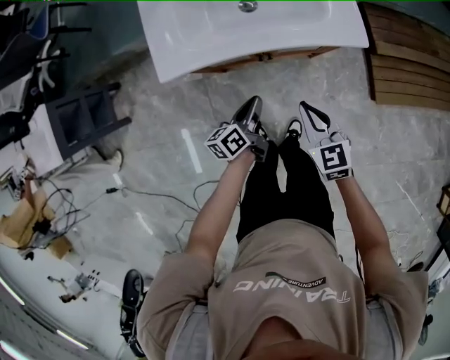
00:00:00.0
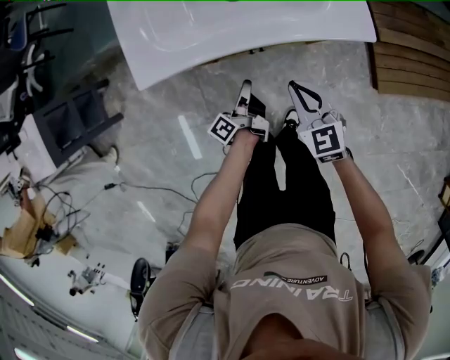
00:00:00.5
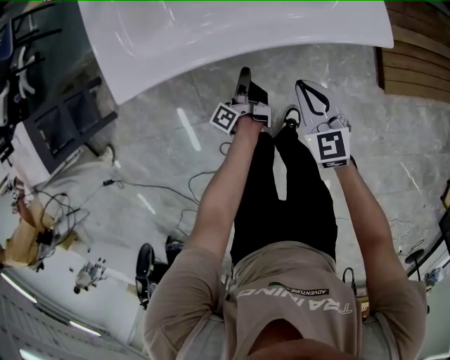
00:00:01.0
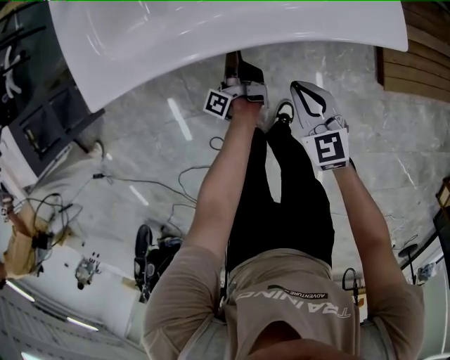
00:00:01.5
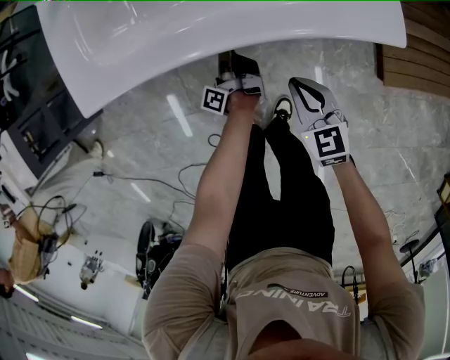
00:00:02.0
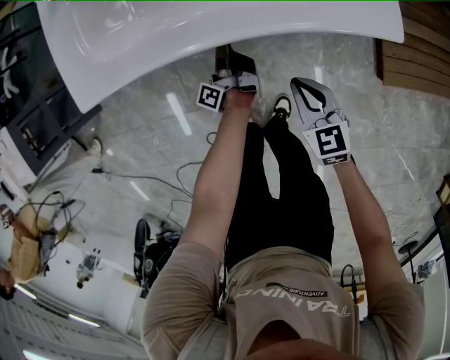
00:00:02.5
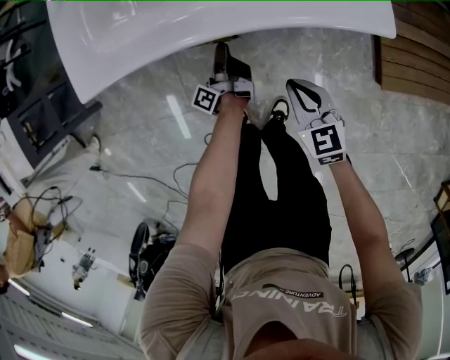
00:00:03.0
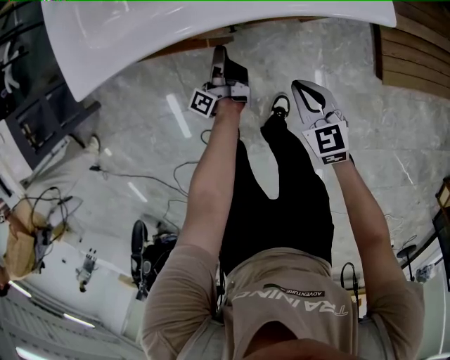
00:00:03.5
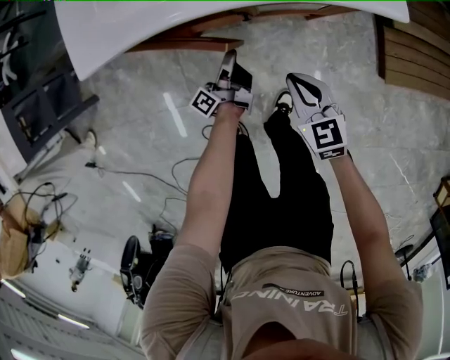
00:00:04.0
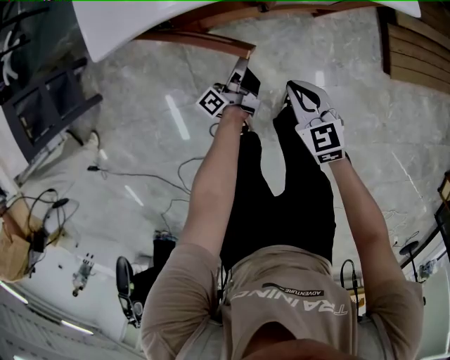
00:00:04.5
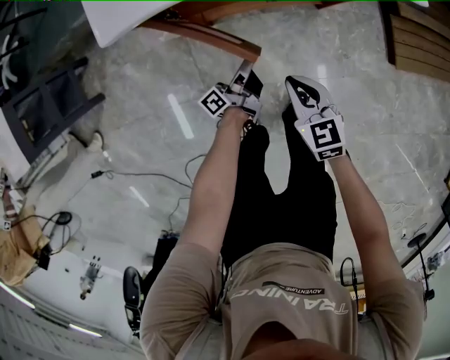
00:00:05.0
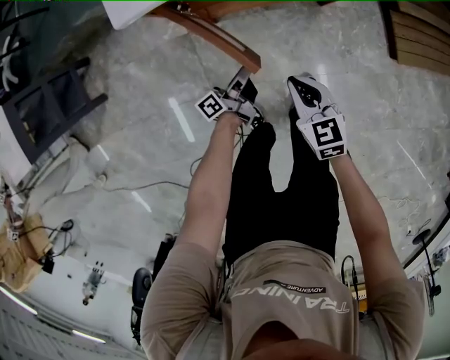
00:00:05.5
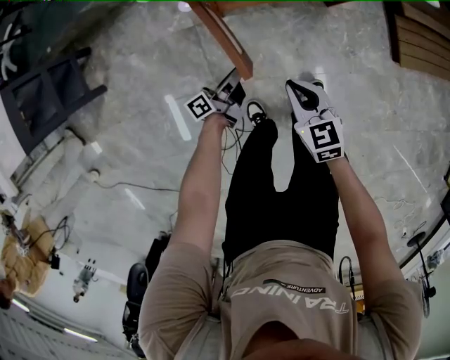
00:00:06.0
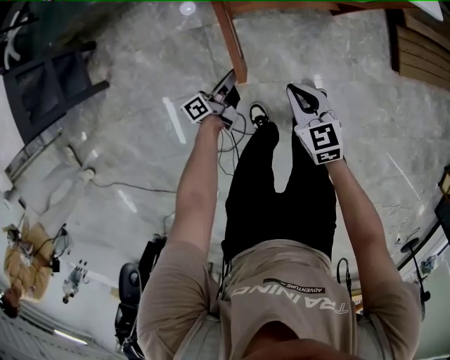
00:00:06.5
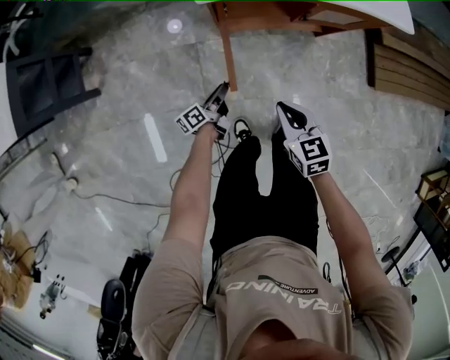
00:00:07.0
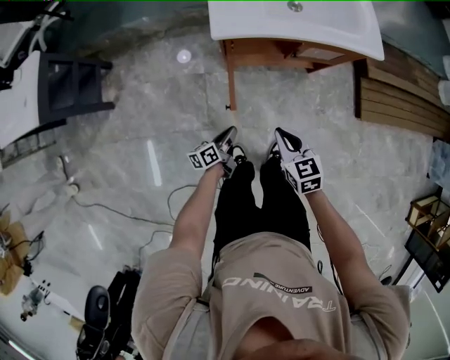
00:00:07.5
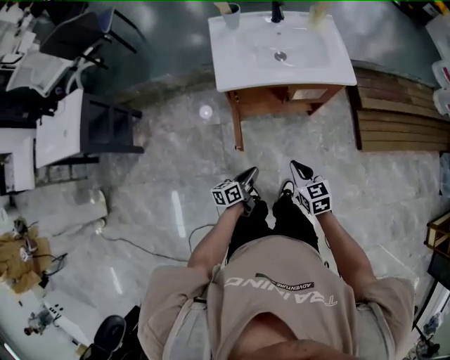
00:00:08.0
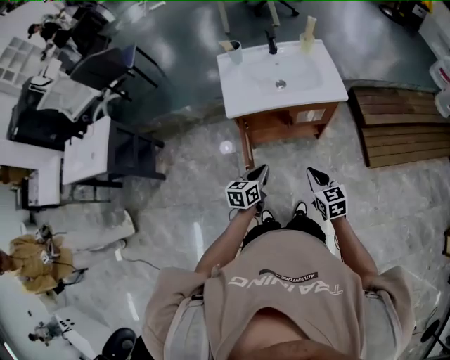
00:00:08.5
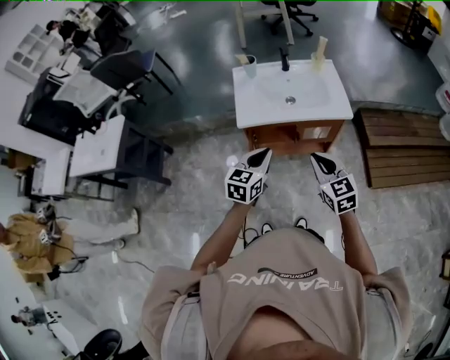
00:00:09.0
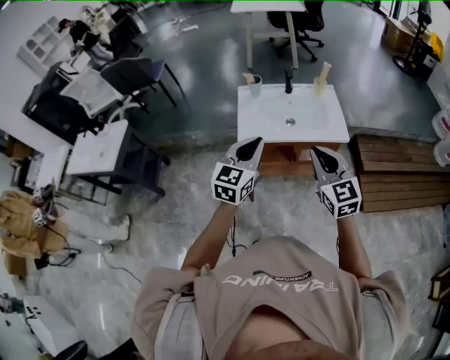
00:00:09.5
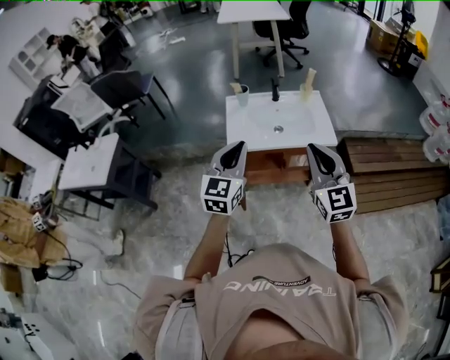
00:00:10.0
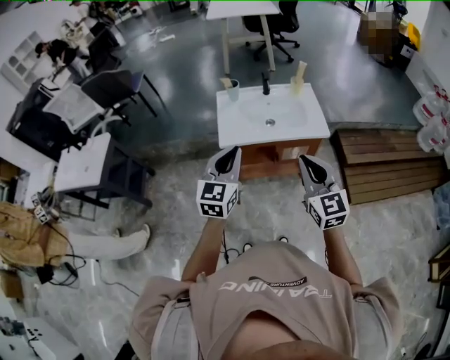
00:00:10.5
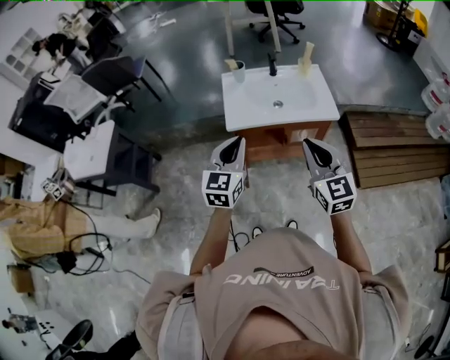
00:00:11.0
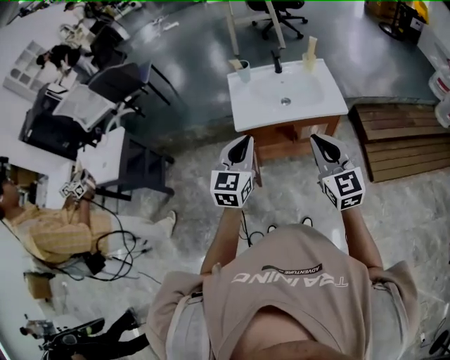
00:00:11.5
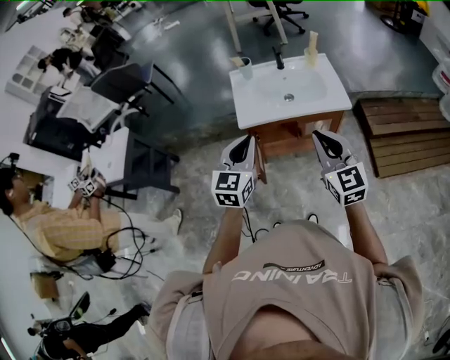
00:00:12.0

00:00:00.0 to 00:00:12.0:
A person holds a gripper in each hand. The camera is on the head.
00:00:00.0 to 00:00:02.0: The left gripper goes approximately 25 cm downward and forward, changes its angle by approximately 60 degrees, and opens its fingers; the right gripper travels downward by roughly 15 cm.
00:00:02.0 to 00:00:04.0: The right gripper ends up some 5 cm from where it was. The left gripper heads backward, covering some 5 cm, and swivels approximately 20 degrees.
00:00:04.0 to 00:00:06.0: The two grippers go approximately 20 cm to the left and backward. The left gripper changes its angle by roughly 30 degrees.
00:00:06.0 to 00:00:08.0: The left gripper heads upward and backward, covering some 20 cm, and turns by some 30 degrees; the right gripper moves upward, roughly 20 cm.
00:00:08.0 to 00:00:10.0: Both grippers move upward, approximately 40 cm. The left gripper rotates around the line of its fingers by about 60 degrees, clockwise from behind. Meanwhile the right gripper angles its fingers upward, by roughly 40 degrees.
00:00:10.0 to 00:00:12.0: Both grippers travel together downward, some 5 cm.

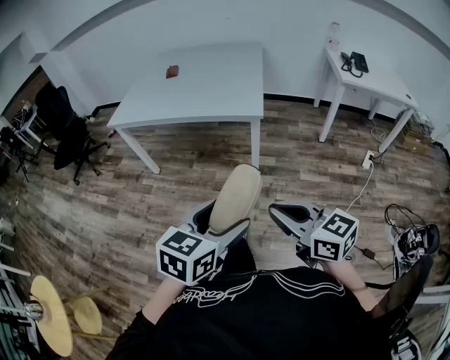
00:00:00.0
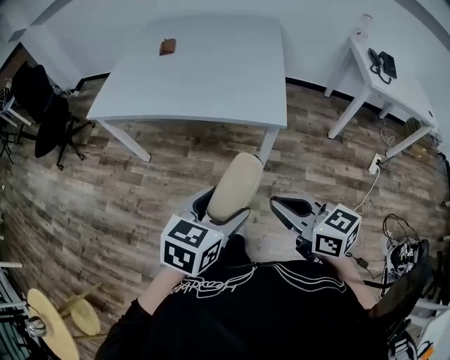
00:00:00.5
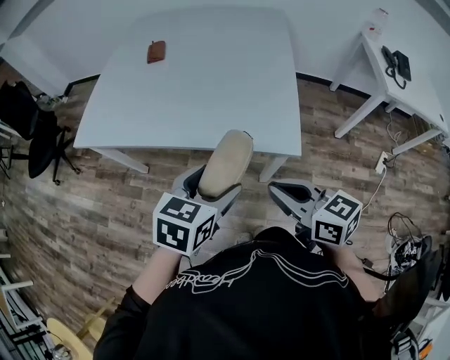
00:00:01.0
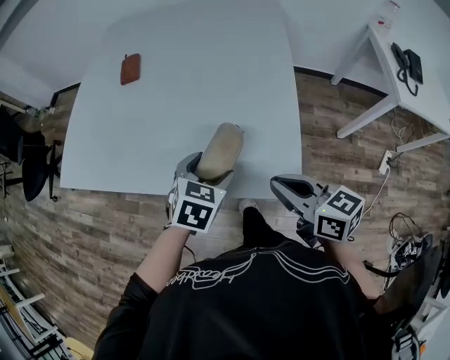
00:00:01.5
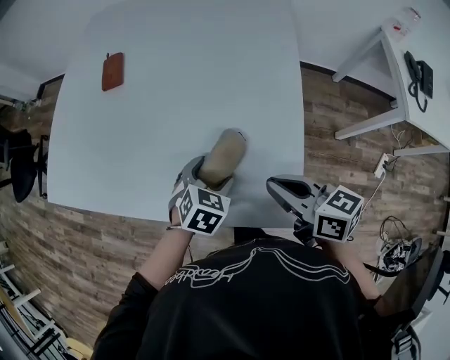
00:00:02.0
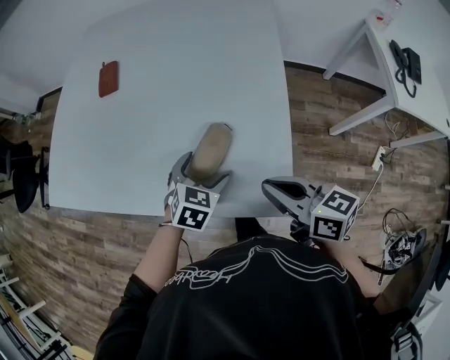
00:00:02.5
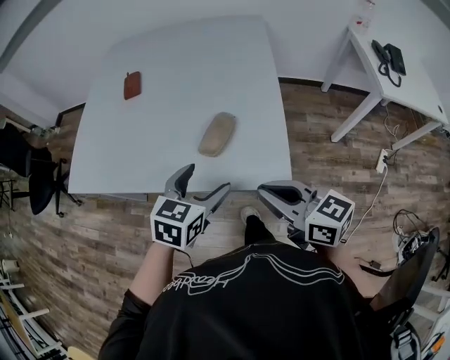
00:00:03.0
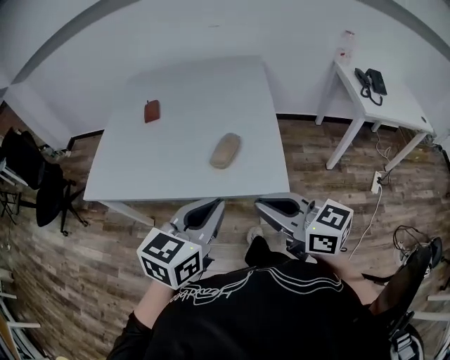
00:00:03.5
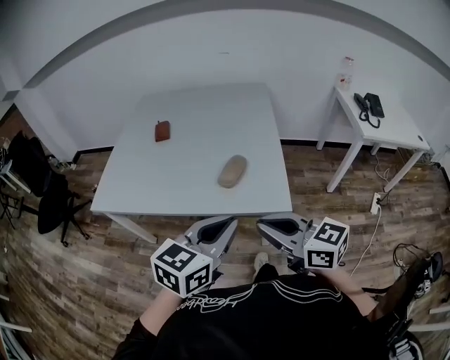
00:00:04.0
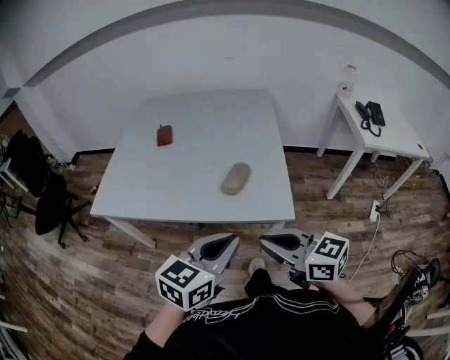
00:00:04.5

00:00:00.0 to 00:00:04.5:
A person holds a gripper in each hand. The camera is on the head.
00:00:00.0 to 00:00:02.0: The pair of grippers is taken forward, approximately 70 cm. The right gripper rotates approximately 20 degrees. The left gripper rotates some 30 degrees.
00:00:02.0 to 00:00:04.5: The left gripper heads backward and upward, covering some 40 cm, tilts its fingers roughly 40 degrees upward, and closes up. The right gripper shifts approximately 35 cm backward, upward and to the left, and rotates roughly 20 degrees.

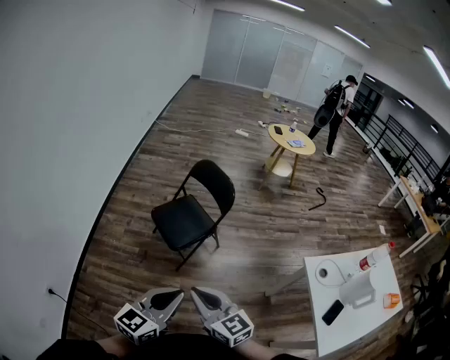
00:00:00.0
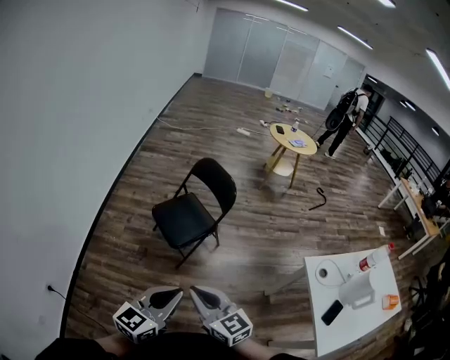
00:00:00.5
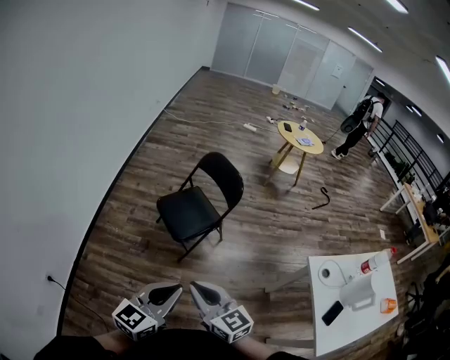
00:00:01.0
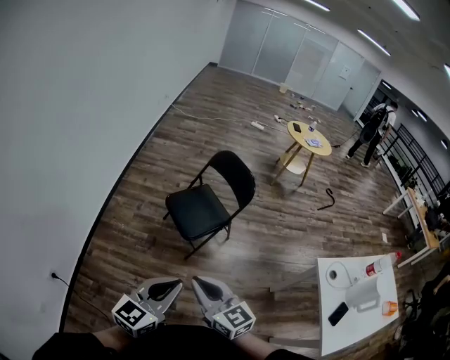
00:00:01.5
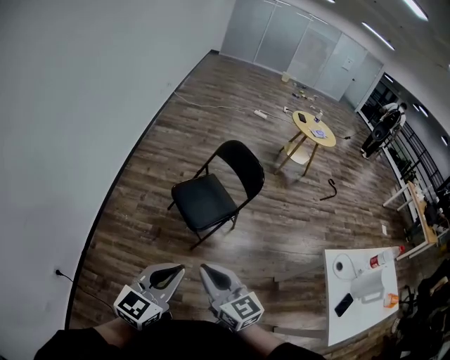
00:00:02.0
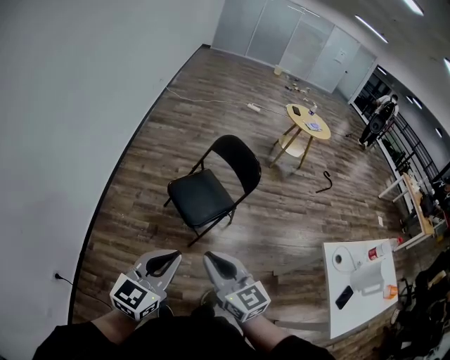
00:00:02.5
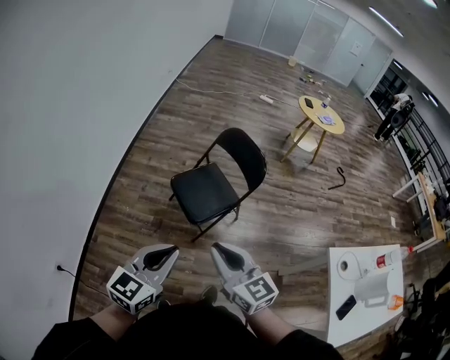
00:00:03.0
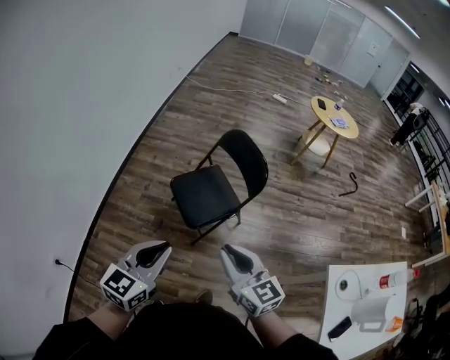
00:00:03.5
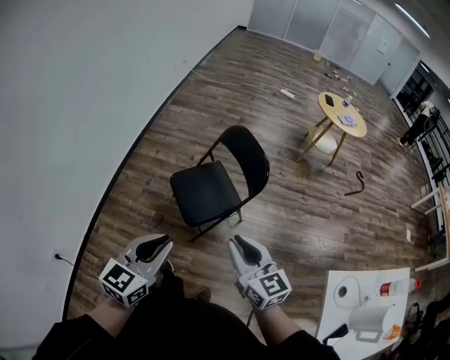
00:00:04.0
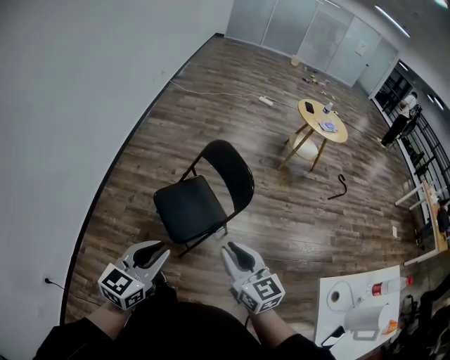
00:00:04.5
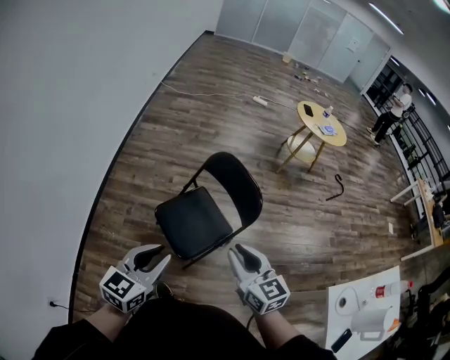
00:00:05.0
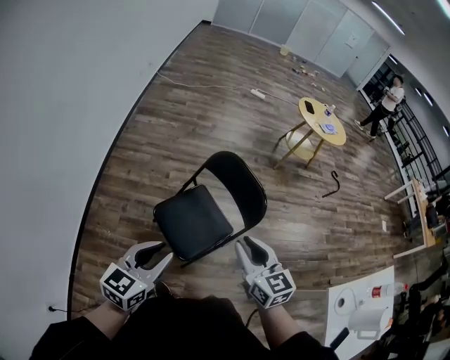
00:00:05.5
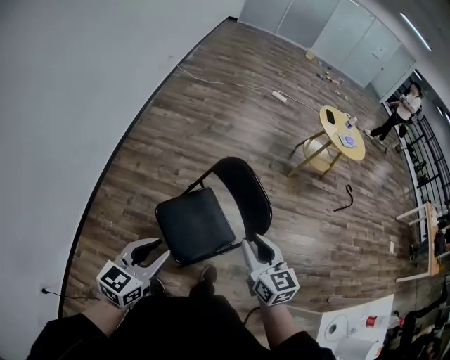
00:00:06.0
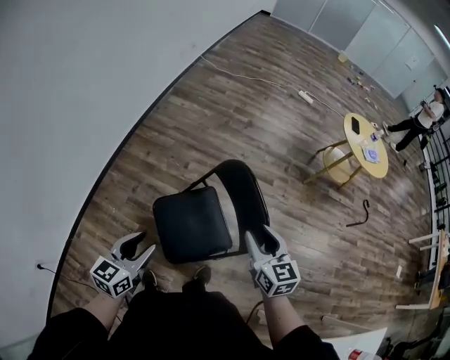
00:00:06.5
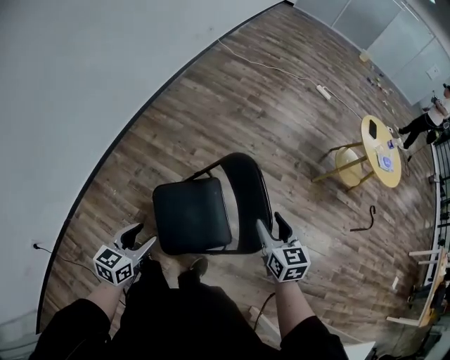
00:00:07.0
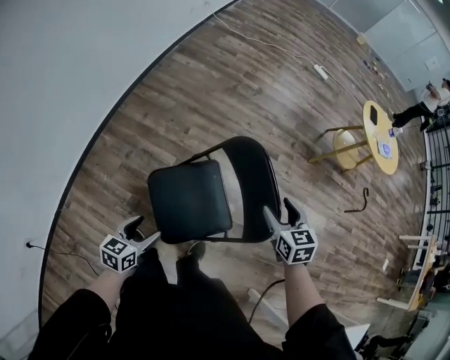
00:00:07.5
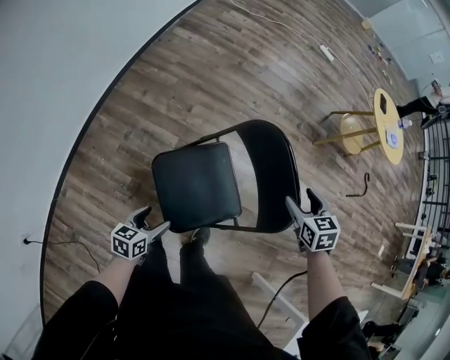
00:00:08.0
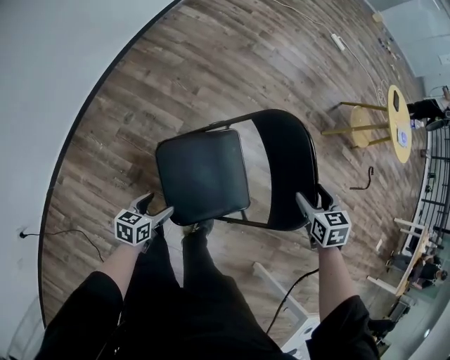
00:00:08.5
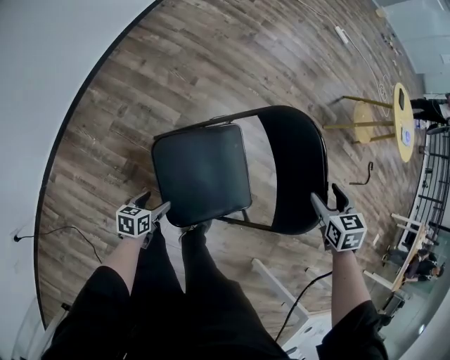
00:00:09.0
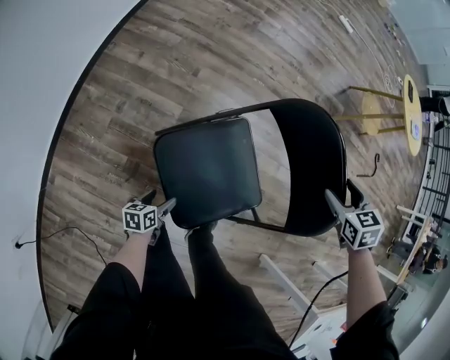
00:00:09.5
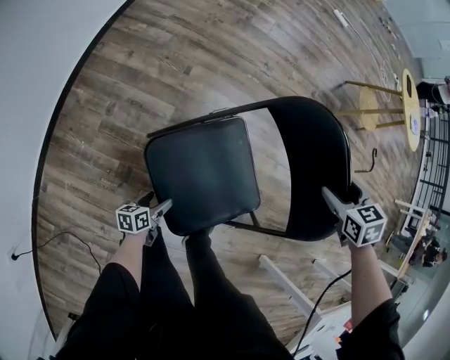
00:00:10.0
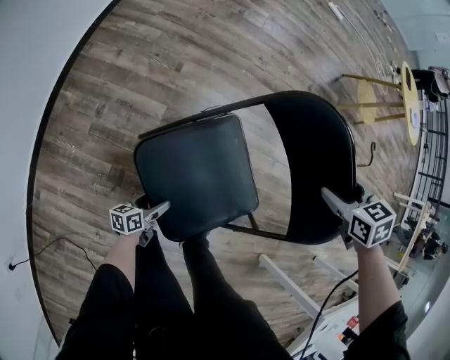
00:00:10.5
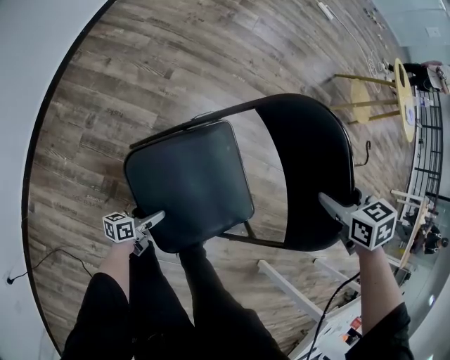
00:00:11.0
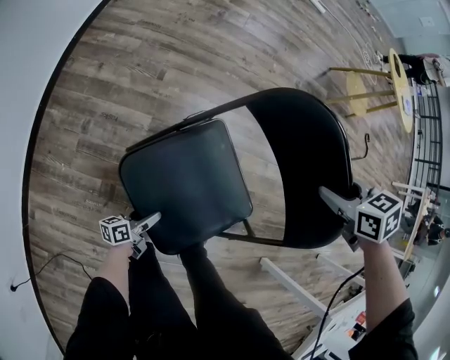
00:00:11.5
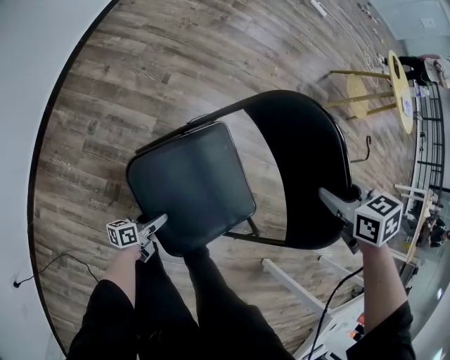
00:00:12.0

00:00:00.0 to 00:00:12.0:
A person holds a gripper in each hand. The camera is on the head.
00:00:00.0 to 00:00:02.0: Both grippers travel together to the left, about 10 cm.
00:00:02.0 to 00:00:04.0: The left gripper moves forward and to the right, roughly 20 cm; the right gripper travels to the right and forward by approximately 25 cm.
00:00:04.0 to 00:00:06.0: Both grippers move forward, roughly 25 cm.
00:00:06.0 to 00:00:08.0: The left gripper is displaced downward by about 30 cm, rotates some 40 degrees, and opens up; the right gripper moves forward, downward and to the right, approximately 30 cm, tilts its fingers approximately 30 degrees downward, and opens.
00:00:08.0 to 00:00:10.0: The left gripper travels downward by approximately 25 cm, and turns by approximately 20 degrees. The right gripper moves downward, roughly 10 cm.
00:00:10.0 to 00:00:12.0: The right gripper closes. Meanwhile the left gripper changes its angle by some 20 degrees.
